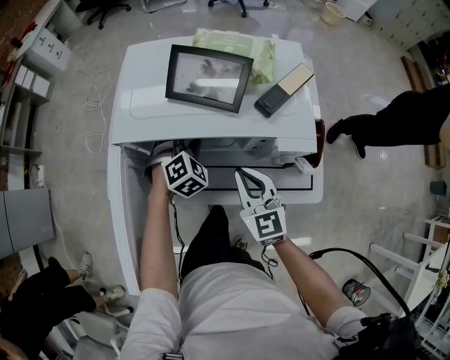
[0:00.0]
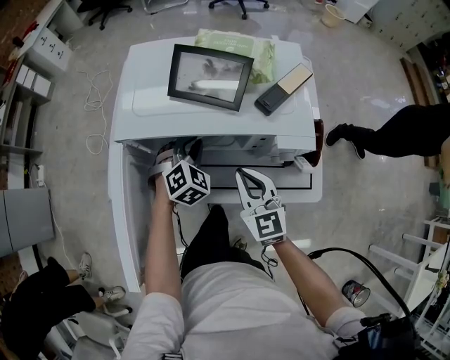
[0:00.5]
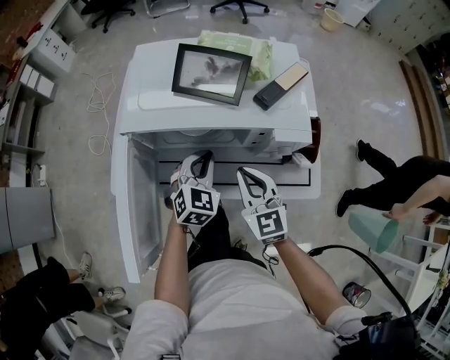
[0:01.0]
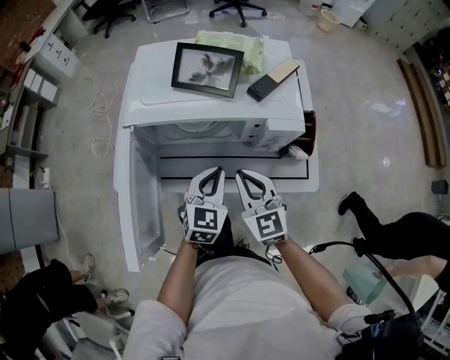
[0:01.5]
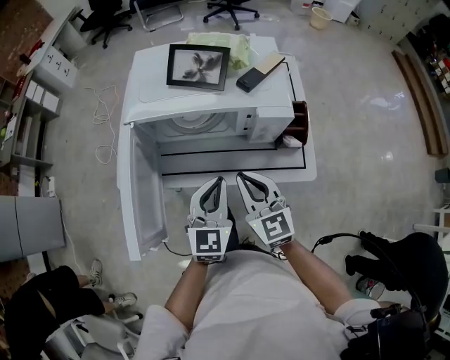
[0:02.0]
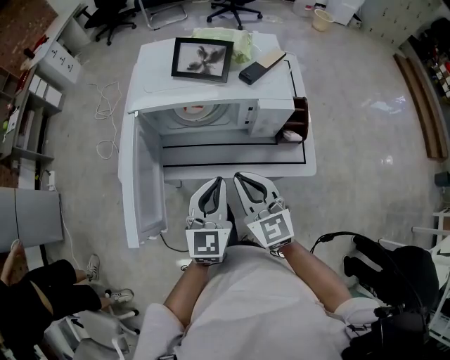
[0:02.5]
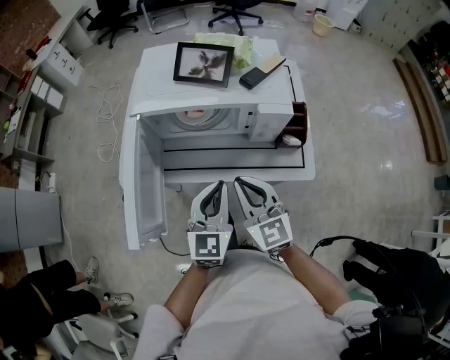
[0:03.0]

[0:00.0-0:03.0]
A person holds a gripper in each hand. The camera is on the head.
0:00.0 to 0:01.5: The right gripper shifts by approximately 5 cm.
0:01.5 to 0:03.0: The right gripper moves approximately 10 cm.

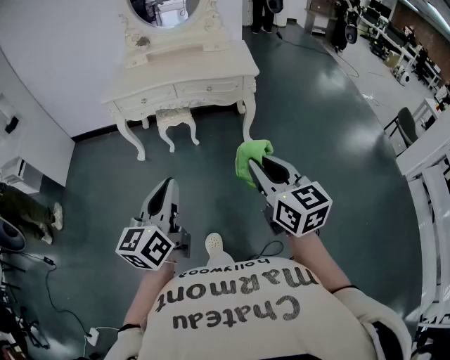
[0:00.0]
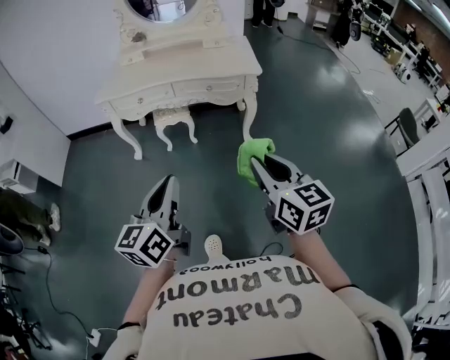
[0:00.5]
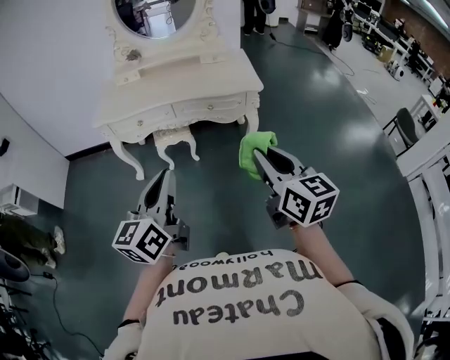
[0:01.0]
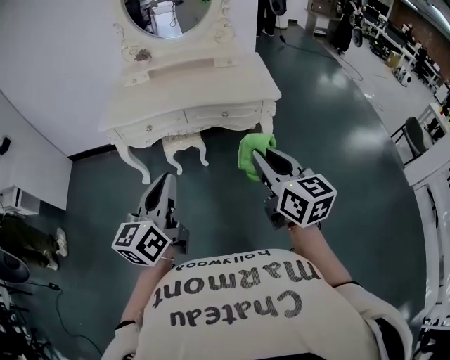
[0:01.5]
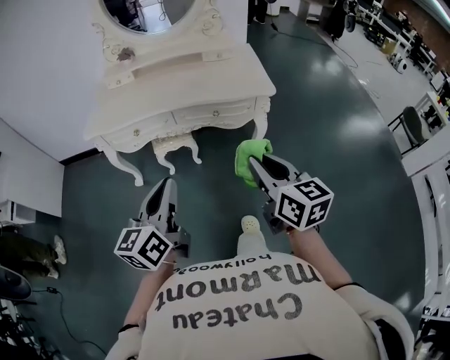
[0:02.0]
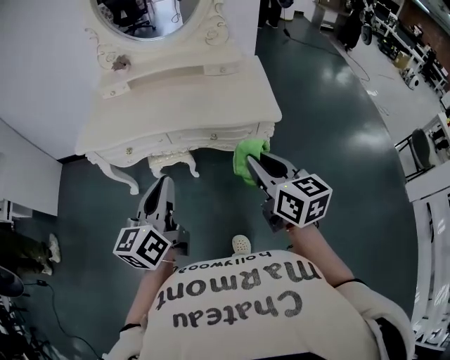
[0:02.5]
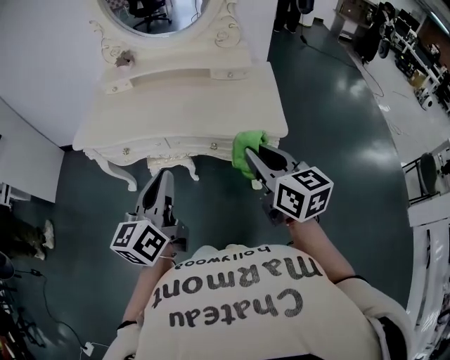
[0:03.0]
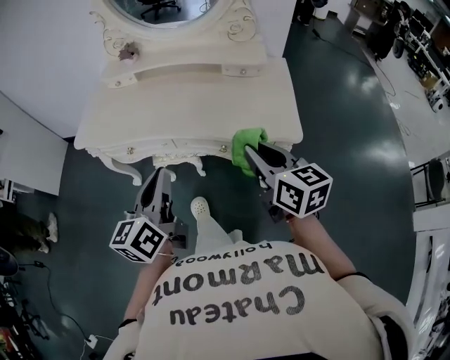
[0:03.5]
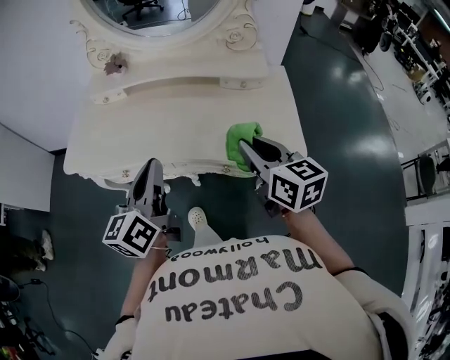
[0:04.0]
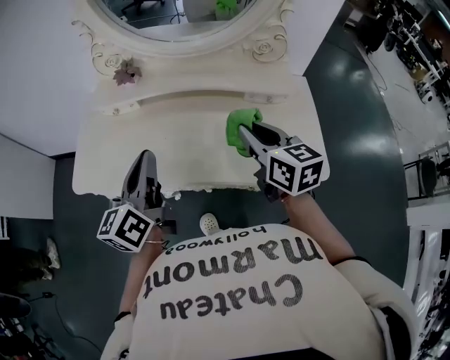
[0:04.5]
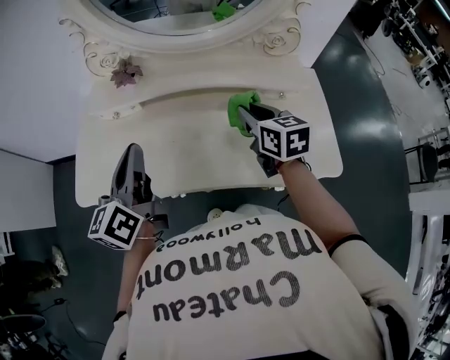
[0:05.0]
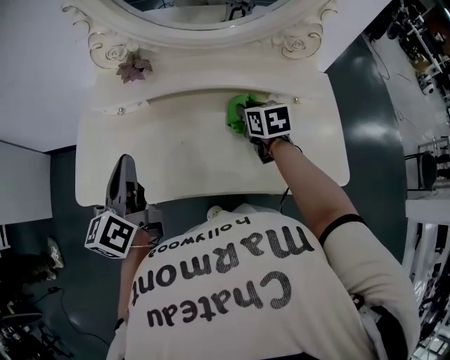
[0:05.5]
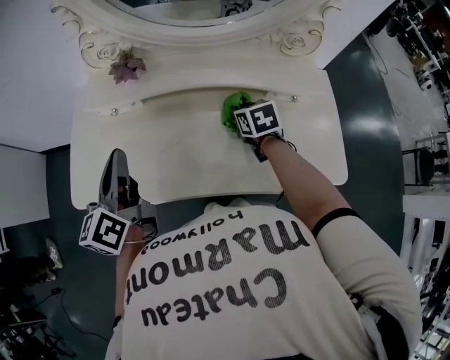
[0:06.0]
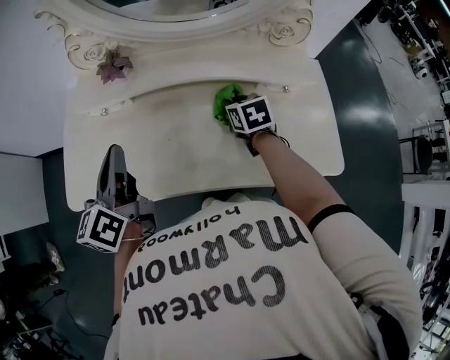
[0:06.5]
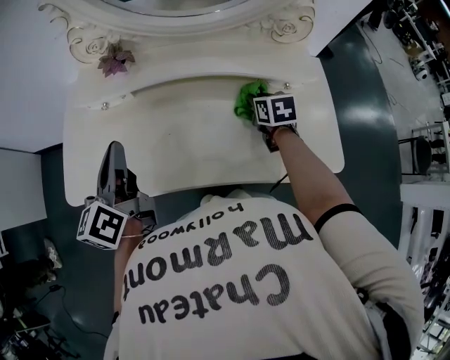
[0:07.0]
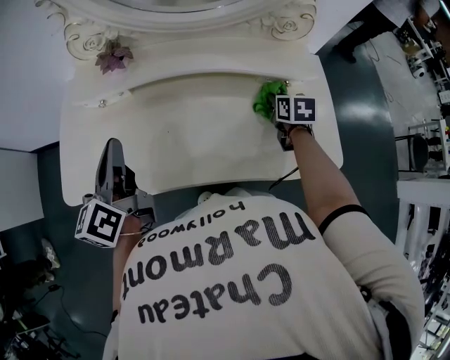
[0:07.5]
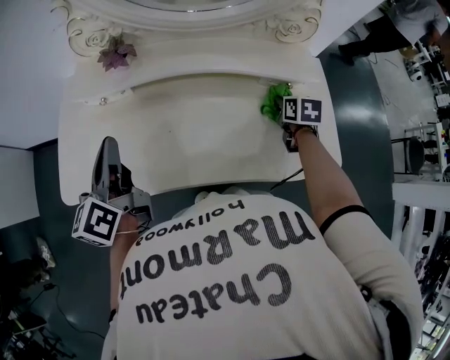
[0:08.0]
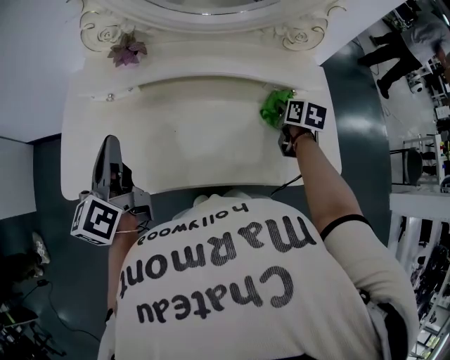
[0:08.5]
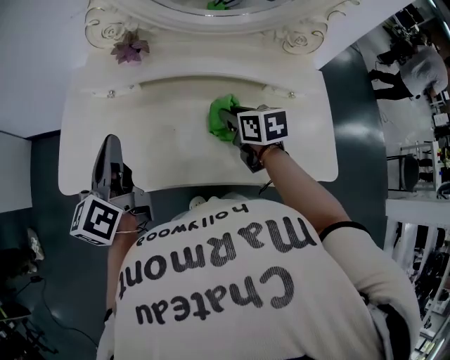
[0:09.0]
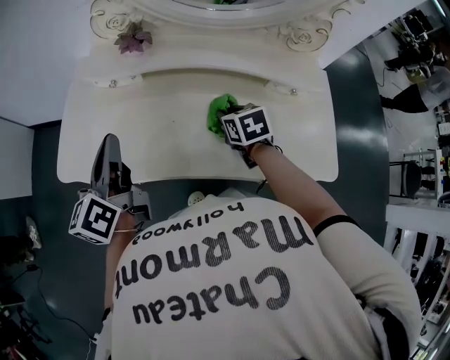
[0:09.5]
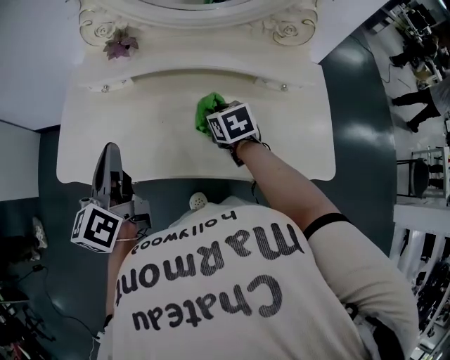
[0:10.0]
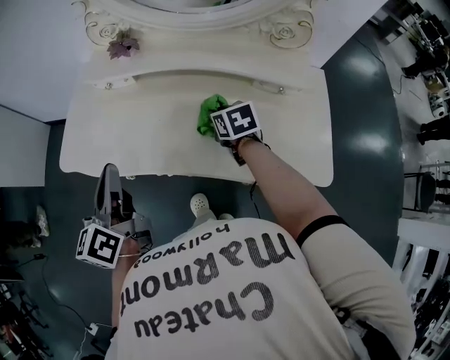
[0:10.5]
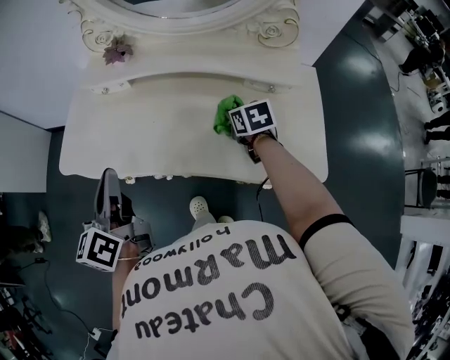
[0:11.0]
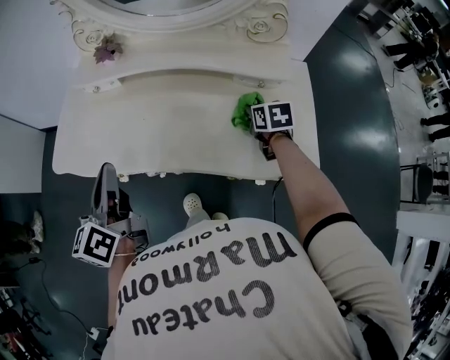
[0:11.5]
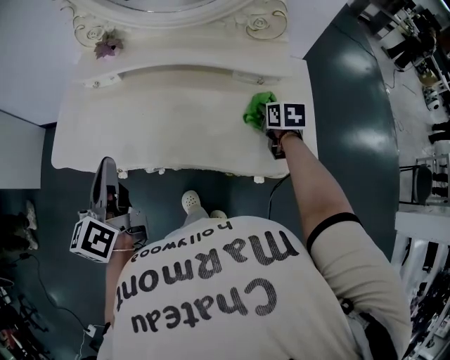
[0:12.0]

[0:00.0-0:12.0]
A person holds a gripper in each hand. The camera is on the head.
0:00.0 to 0:02.0: Both grippers move forward, roughly 30 cm.
0:02.0 to 0:04.0: The grippers both shift forward by roughly 35 cm.
0:04.0 to 0:06.0: The left gripper goes approximately 30 cm forward and to the left; the right gripper goes approximately 35 cm forward and downward, and tips its fingers downward by roughly 30 degrees.
0:06.0 to 0:08.0: The right gripper heads to the right, covering roughly 15 cm, and changes its angle by roughly 20 degrees.
0:08.0 to 0:10.0: The left gripper travels backward by some 5 cm, while the right gripper moves to the left, some 20 cm, and turns by approximately 30 degrees.
0:10.0 to 0:12.0: The right gripper travels to the right by approximately 25 cm; the left gripper heads backward, covering approximately 10 cm.

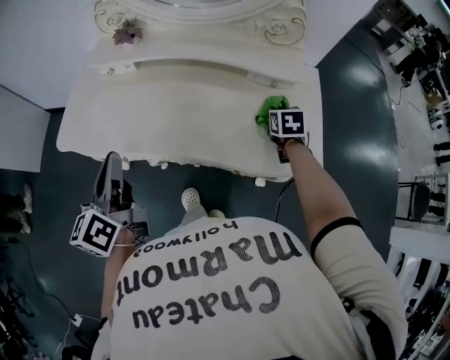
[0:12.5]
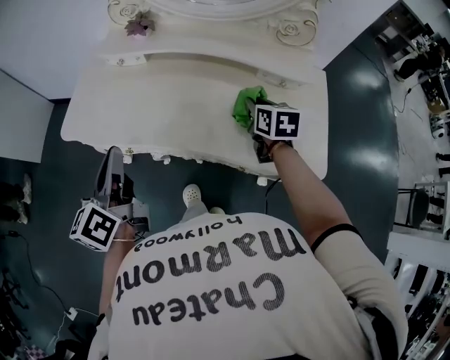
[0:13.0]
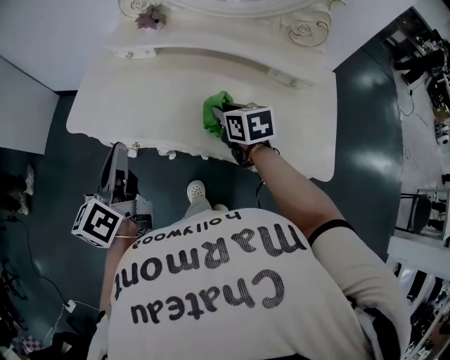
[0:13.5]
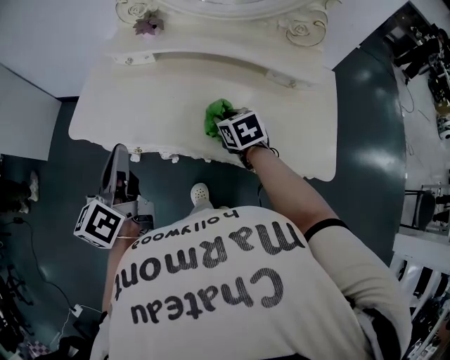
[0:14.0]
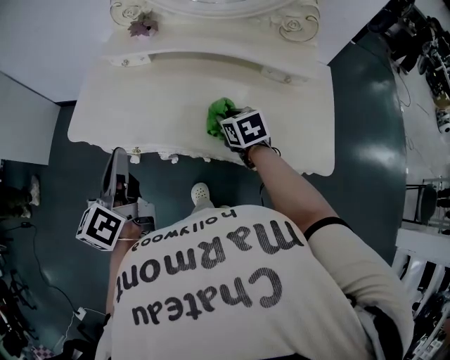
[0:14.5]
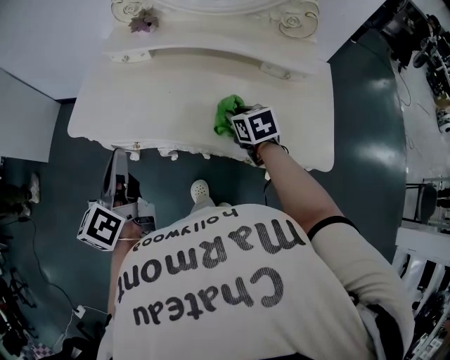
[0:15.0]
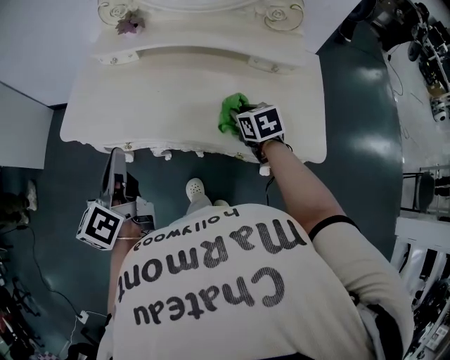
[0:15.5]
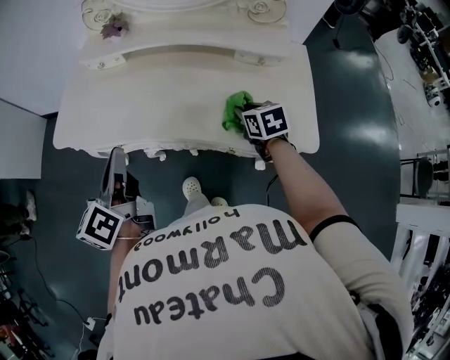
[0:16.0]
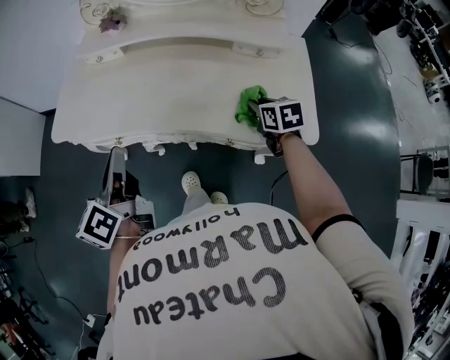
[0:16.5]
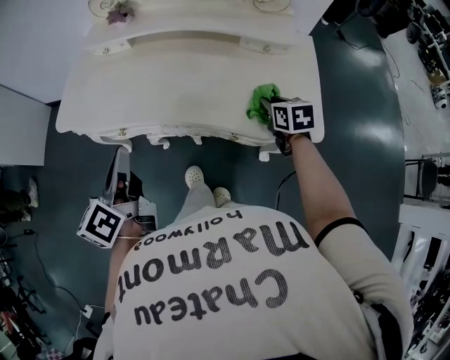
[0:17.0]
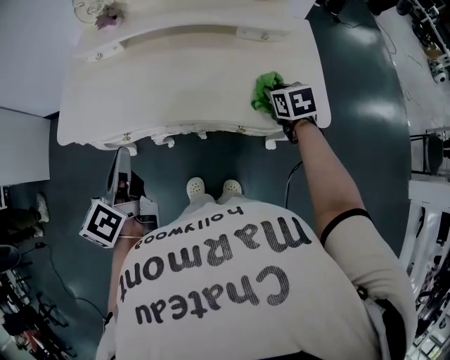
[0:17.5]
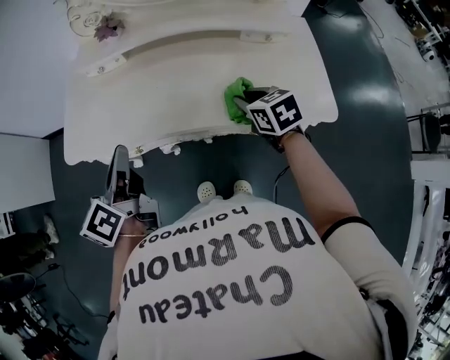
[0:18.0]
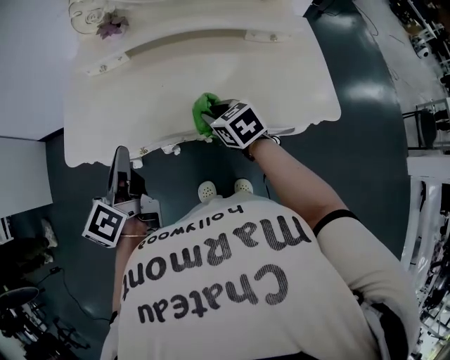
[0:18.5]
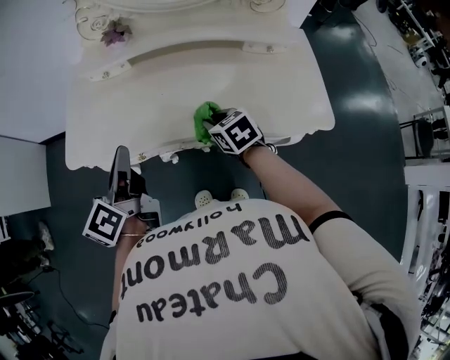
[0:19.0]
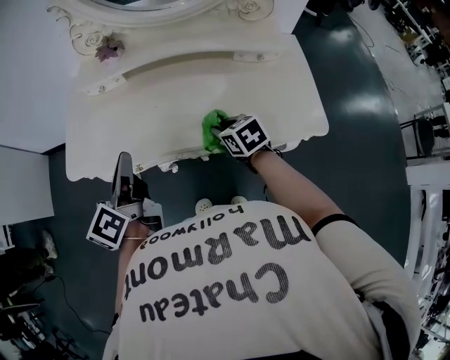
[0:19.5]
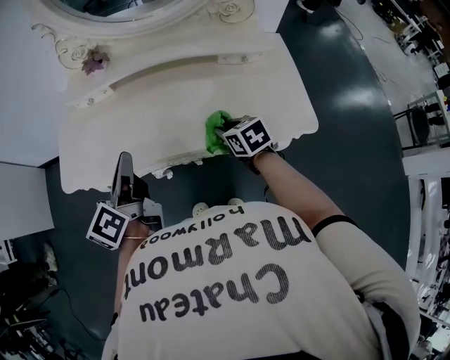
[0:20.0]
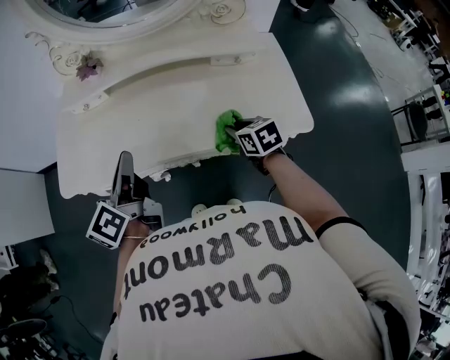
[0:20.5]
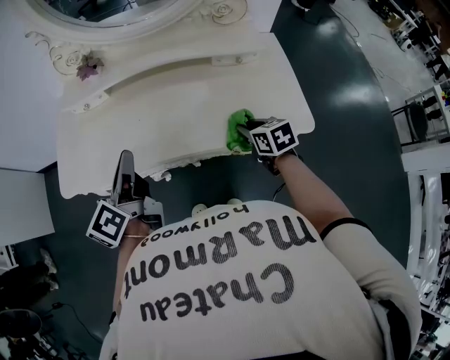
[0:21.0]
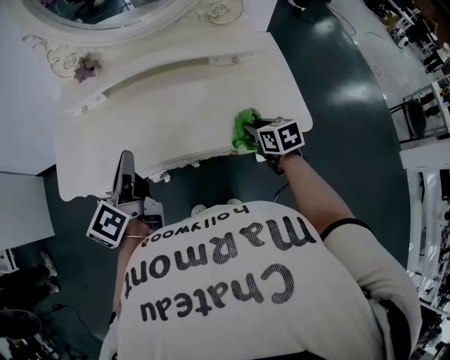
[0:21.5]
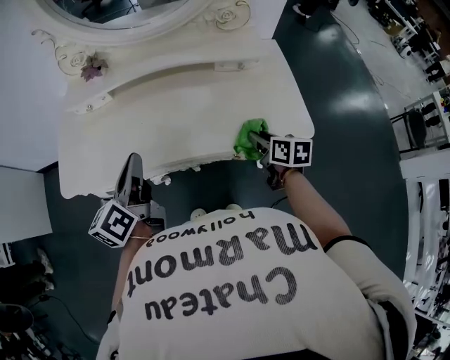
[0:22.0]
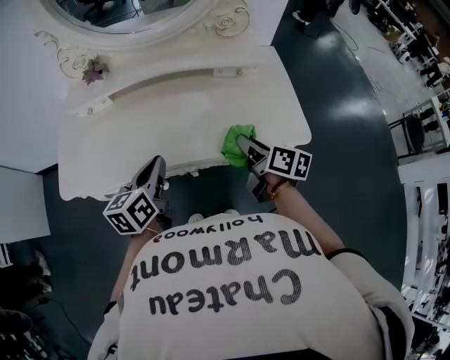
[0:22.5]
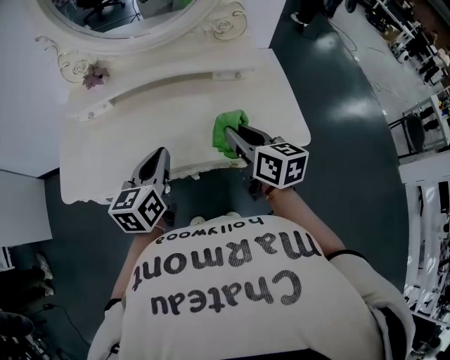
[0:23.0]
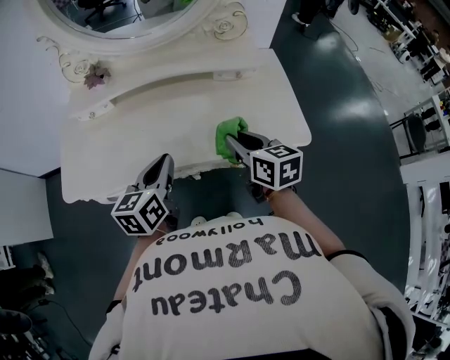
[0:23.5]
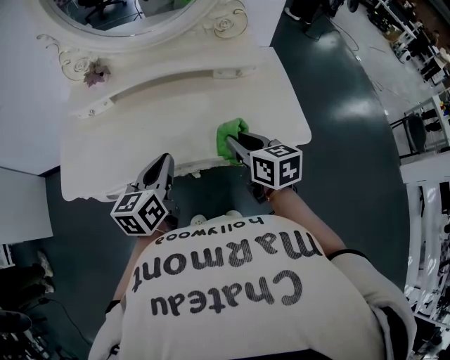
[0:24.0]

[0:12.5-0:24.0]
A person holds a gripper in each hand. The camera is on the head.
0:12.5 to 0:14.5: The right gripper goes about 20 cm to the left, and rotates some 30 degrees.
0:14.5 to 0:16.5: The right gripper travels to the right and backward by some 15 cm; the left gripper changes place by some 5 cm.
0:16.5 to 0:18.5: The right gripper moves to the left, about 25 cm. Meanwhile the left gripper travels to the left and forward by about 10 cm.
0:18.5 to 0:20.0: Both grippers move to the right, some 10 cm.
0:20.0 to 0:22.0: The right gripper moves to the right, roughly 10 cm, and turns by about 30 degrees.
0:22.0 to 0:24.0: The left gripper travels to the right by about 10 cm, and rotates some 20 degrees, while the right gripper goes approximately 10 cm upward and to the left.
